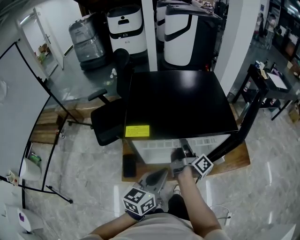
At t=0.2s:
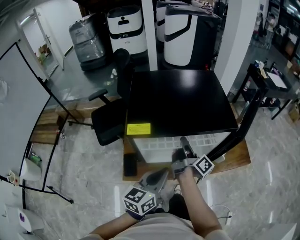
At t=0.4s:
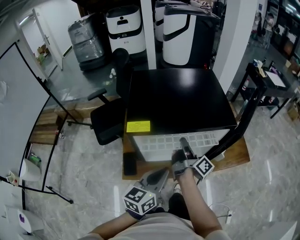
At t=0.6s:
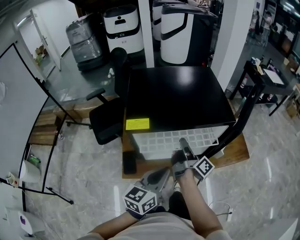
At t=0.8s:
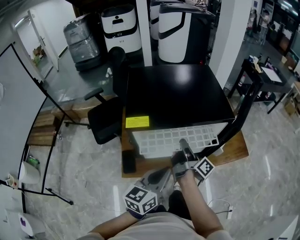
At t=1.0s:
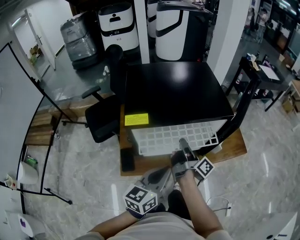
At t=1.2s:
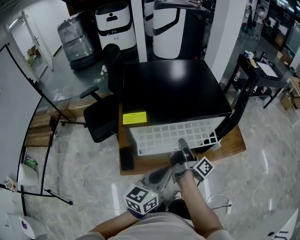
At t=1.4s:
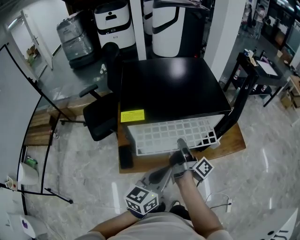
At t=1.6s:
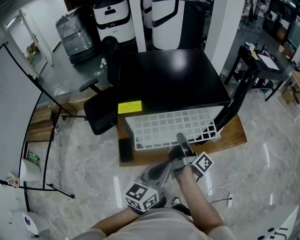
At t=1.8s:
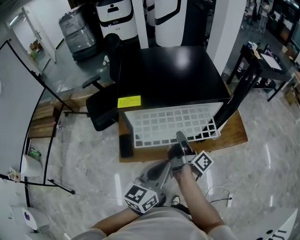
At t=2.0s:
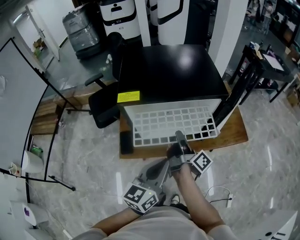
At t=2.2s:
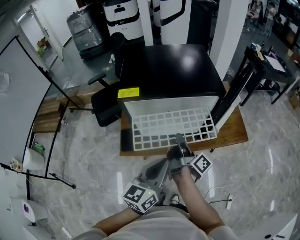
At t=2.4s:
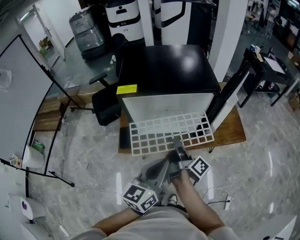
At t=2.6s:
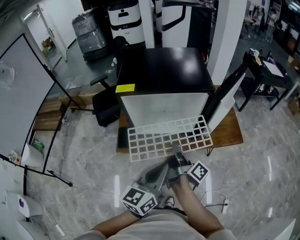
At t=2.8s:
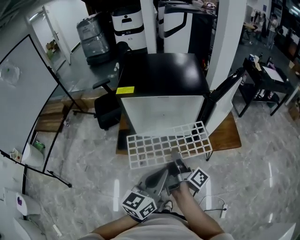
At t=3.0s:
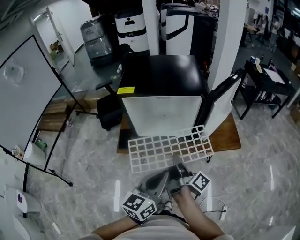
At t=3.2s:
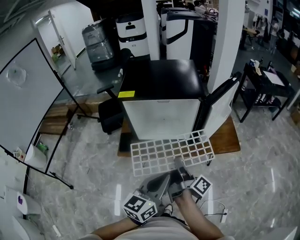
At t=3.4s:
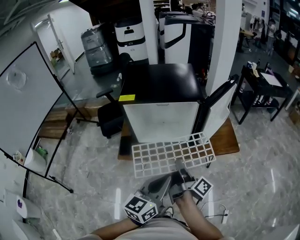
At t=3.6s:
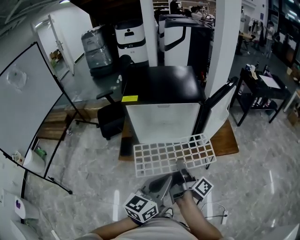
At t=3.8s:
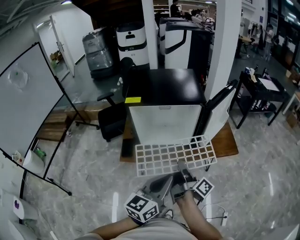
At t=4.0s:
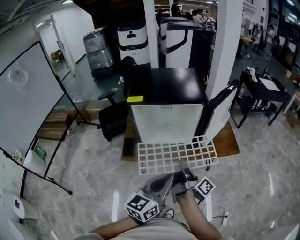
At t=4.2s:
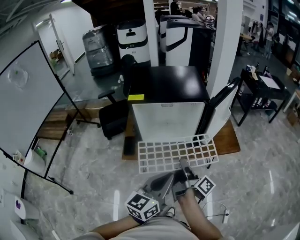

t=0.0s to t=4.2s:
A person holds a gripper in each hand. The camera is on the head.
t=0.0s to t=1.4s: The left gripper changes place by approximately 5 cm.
t=1.4s to t=2.8s: The left gripper ends up about 15 cm from where it was.
t=2.8s to t=4.2s: The left gripper shifts by some 5 cm.

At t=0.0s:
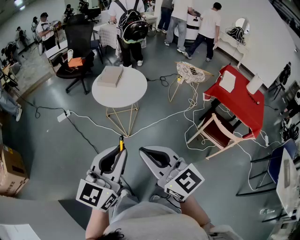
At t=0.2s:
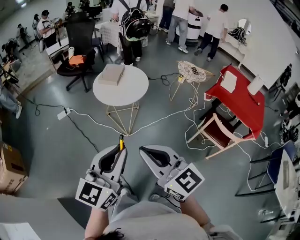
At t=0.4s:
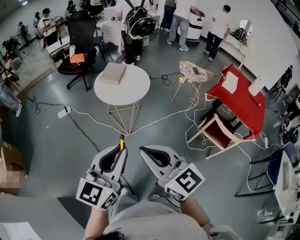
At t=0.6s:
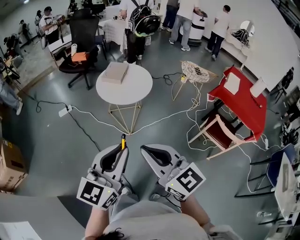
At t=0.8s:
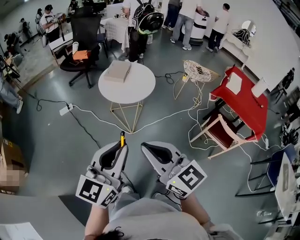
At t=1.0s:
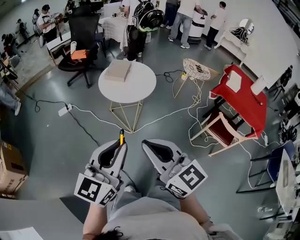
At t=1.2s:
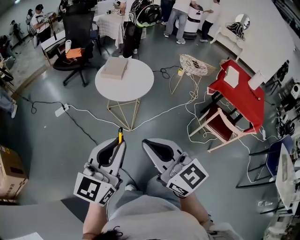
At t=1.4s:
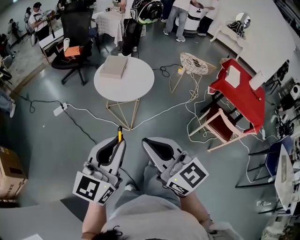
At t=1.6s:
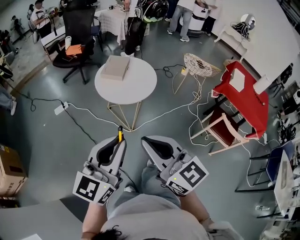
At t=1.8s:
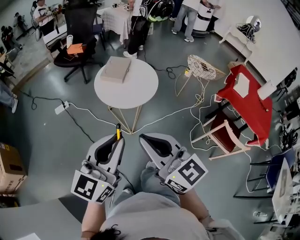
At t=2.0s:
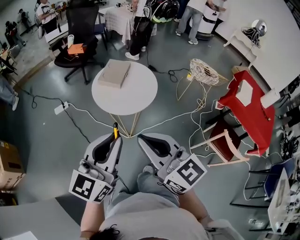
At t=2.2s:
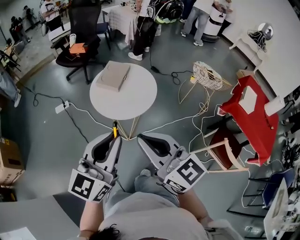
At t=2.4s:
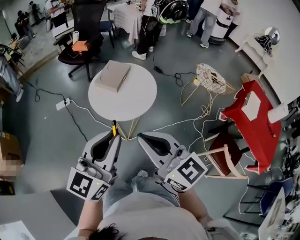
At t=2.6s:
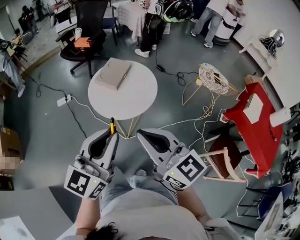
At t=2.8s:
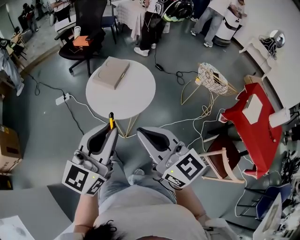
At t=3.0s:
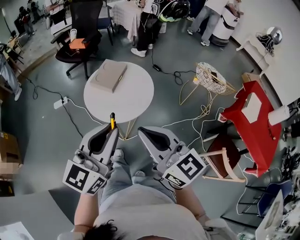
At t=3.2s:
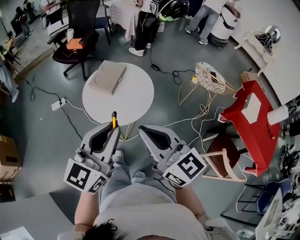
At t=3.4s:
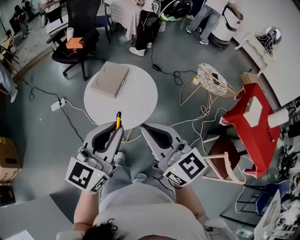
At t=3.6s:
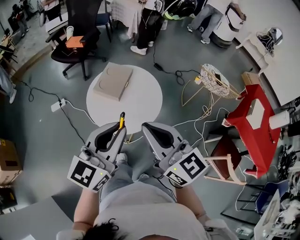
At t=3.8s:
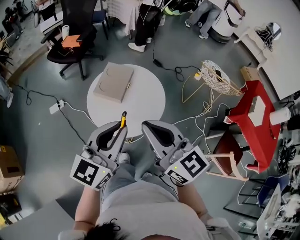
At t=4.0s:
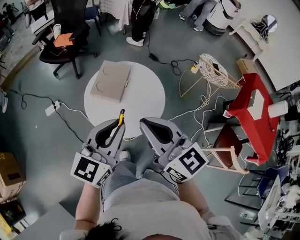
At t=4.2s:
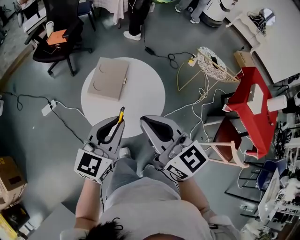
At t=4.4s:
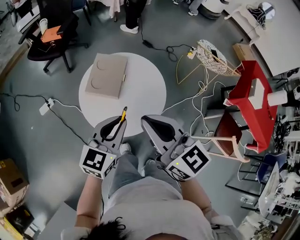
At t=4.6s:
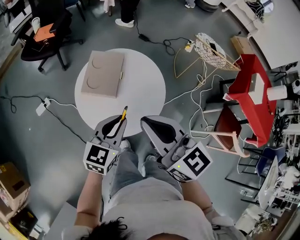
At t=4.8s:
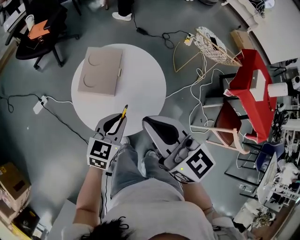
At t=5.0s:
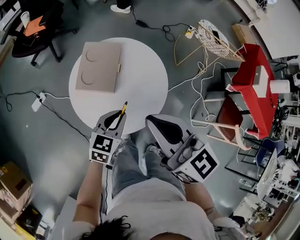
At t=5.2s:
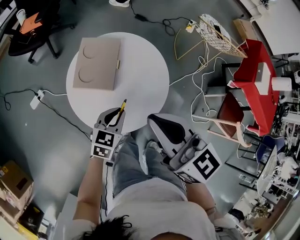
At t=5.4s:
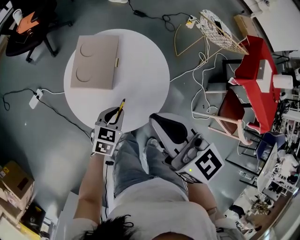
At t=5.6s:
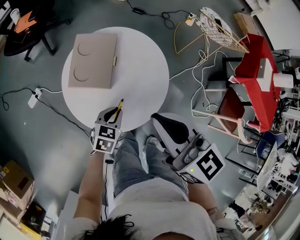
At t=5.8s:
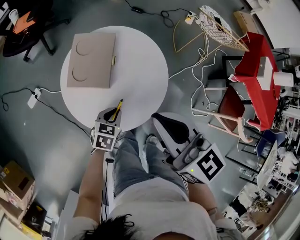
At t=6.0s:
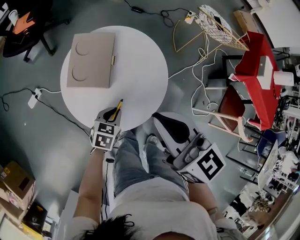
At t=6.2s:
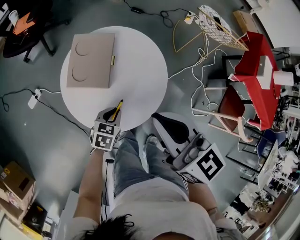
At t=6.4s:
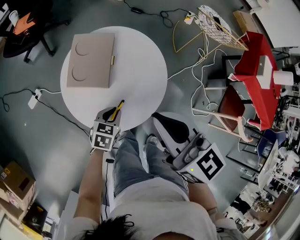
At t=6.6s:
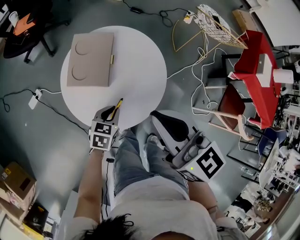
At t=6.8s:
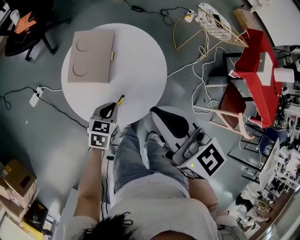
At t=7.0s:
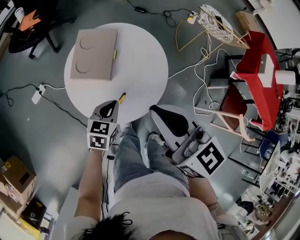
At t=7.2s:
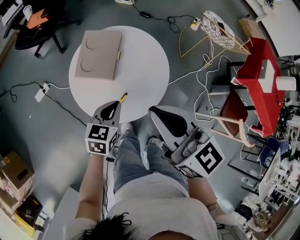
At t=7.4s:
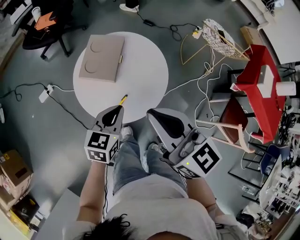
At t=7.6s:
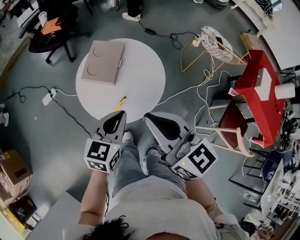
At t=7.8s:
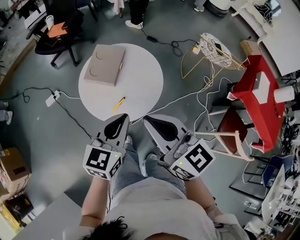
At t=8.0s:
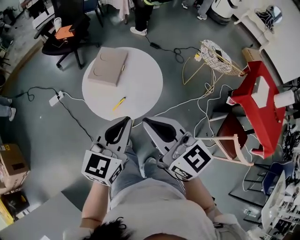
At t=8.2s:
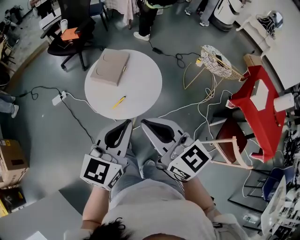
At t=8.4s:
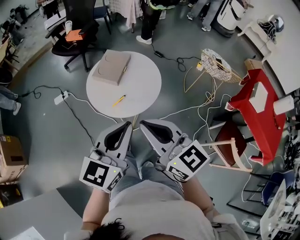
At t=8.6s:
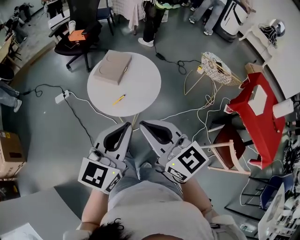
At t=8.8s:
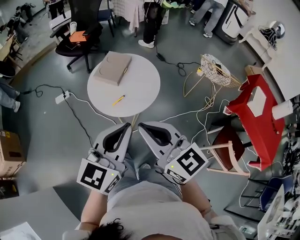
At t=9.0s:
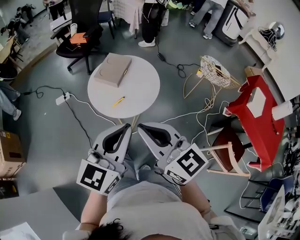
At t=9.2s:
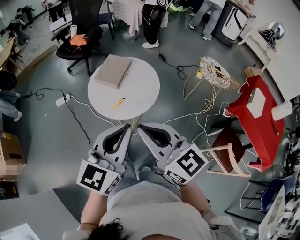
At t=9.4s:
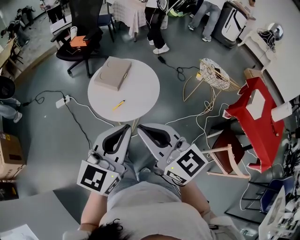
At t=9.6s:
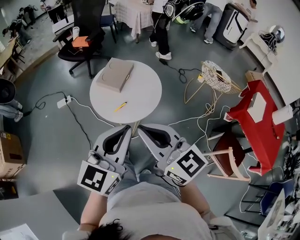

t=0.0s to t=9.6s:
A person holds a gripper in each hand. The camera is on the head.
t=0.0s to t=1.6s: The two grippers go some 15 cm forward and to the left.
t=1.6s to t=3.2s: Both grippers move forward and to the right, approximately 30 cm.
t=3.2s to t=4.8s: The left gripper shifts approximately 35 cm downward and forward, and rotates approximately 30 degrees. The right gripper shifts about 20 cm forward and to the left.
t=4.8s to t=6.4s: The left gripper travels downward by some 15 cm, and rotates about 30 degrees; the right gripper changes place by roughly 5 cm.
t=6.4s to t=8.0s: The left gripper heads upward and backward, covering some 35 cm, and tilts its fingers about 40 degrees upward. Meanwhile the right gripper travels backward and upward by approximately 15 cm.
t=8.0s to t=9.6s: The right gripper is displaced backward by roughly 10 cm; the left gripper goes approximately 10 cm backward and upward.

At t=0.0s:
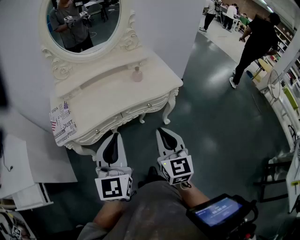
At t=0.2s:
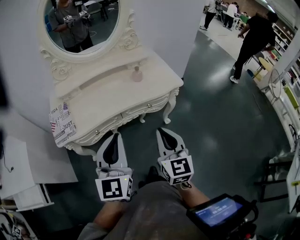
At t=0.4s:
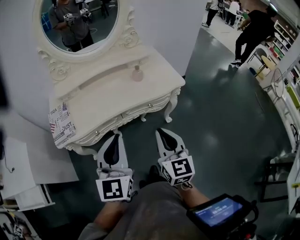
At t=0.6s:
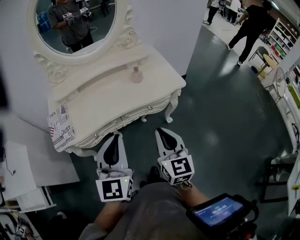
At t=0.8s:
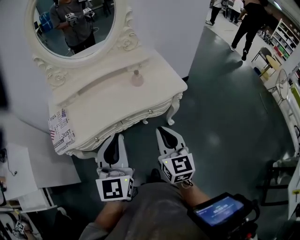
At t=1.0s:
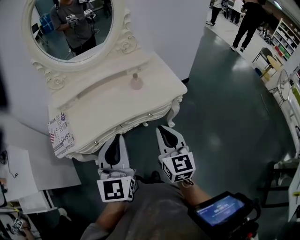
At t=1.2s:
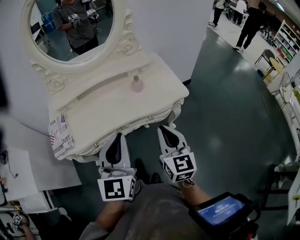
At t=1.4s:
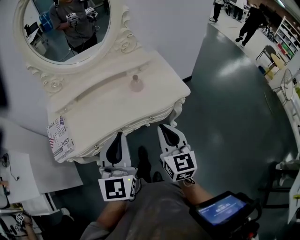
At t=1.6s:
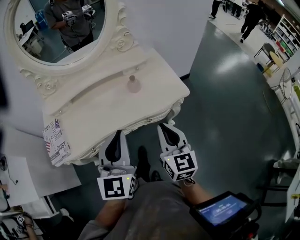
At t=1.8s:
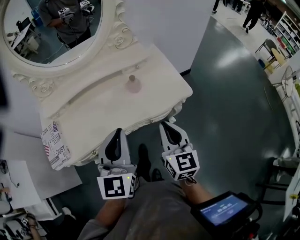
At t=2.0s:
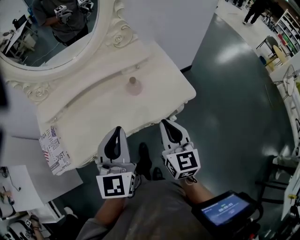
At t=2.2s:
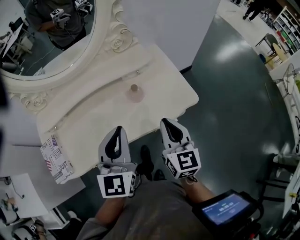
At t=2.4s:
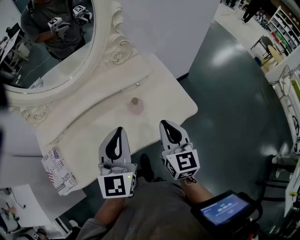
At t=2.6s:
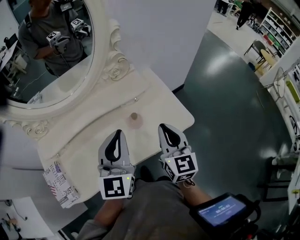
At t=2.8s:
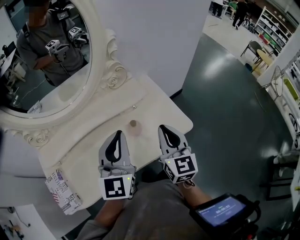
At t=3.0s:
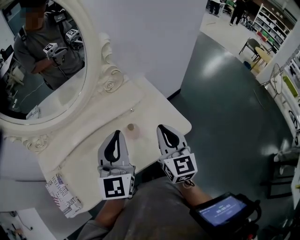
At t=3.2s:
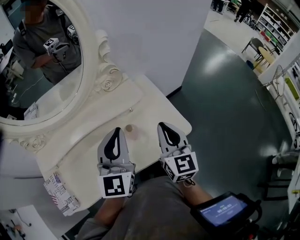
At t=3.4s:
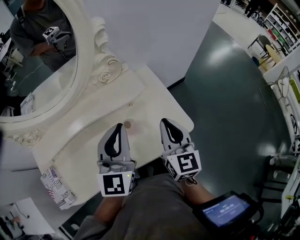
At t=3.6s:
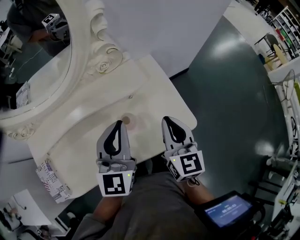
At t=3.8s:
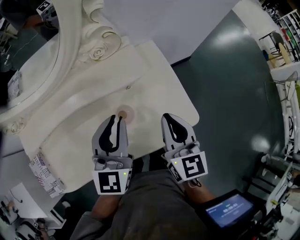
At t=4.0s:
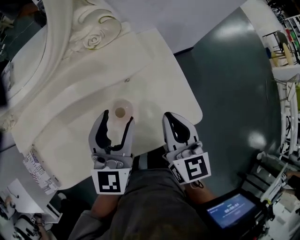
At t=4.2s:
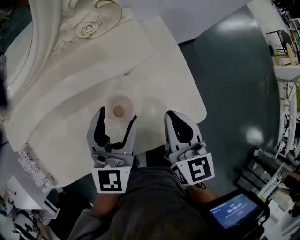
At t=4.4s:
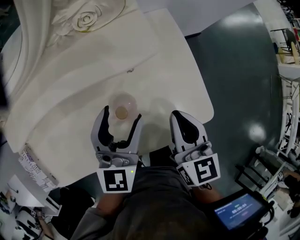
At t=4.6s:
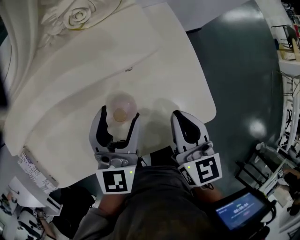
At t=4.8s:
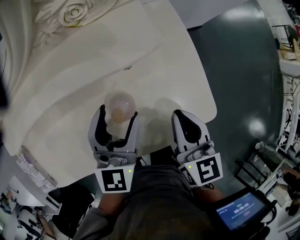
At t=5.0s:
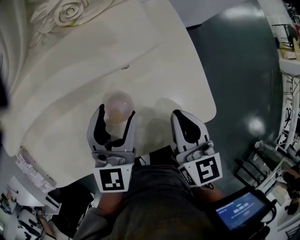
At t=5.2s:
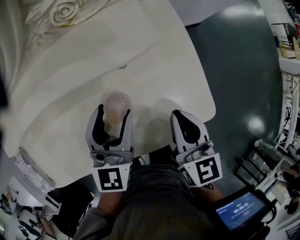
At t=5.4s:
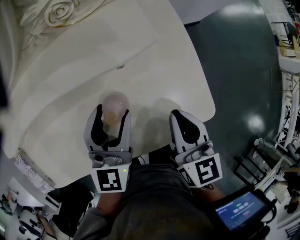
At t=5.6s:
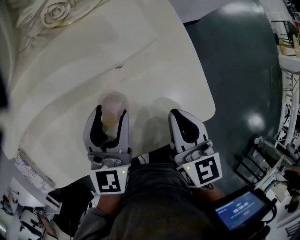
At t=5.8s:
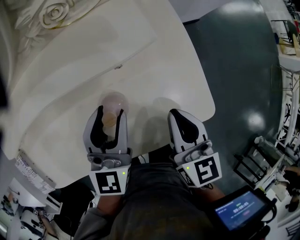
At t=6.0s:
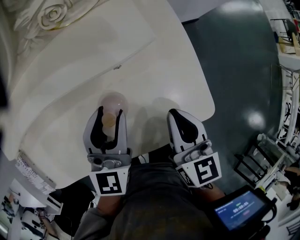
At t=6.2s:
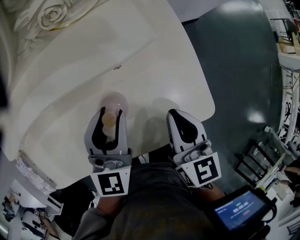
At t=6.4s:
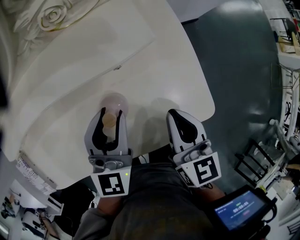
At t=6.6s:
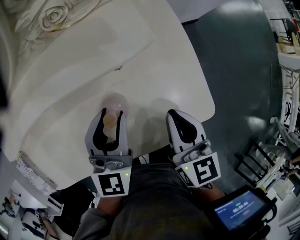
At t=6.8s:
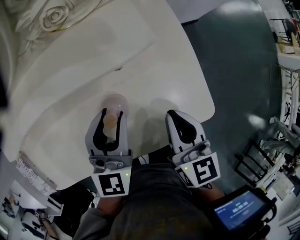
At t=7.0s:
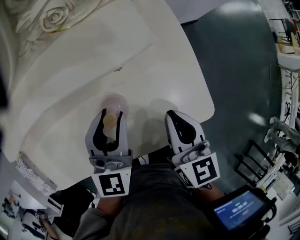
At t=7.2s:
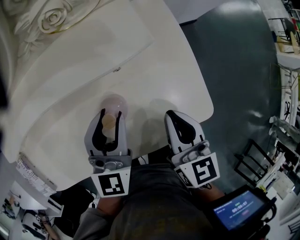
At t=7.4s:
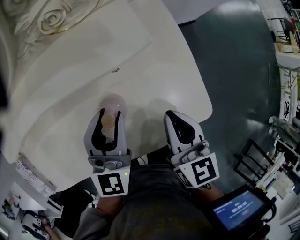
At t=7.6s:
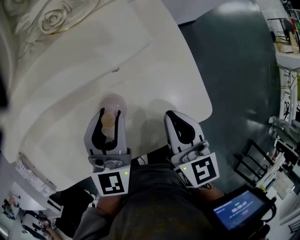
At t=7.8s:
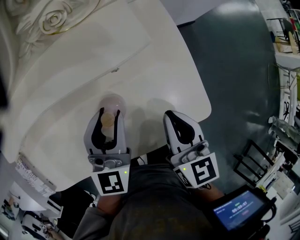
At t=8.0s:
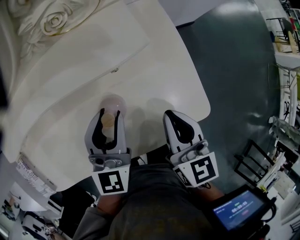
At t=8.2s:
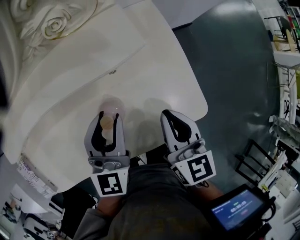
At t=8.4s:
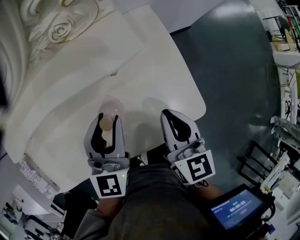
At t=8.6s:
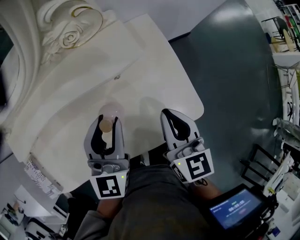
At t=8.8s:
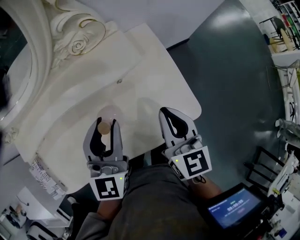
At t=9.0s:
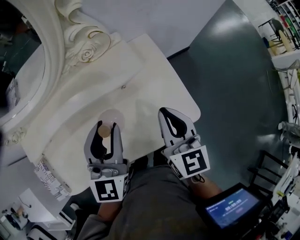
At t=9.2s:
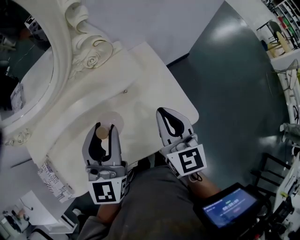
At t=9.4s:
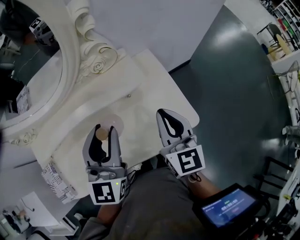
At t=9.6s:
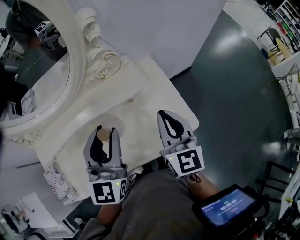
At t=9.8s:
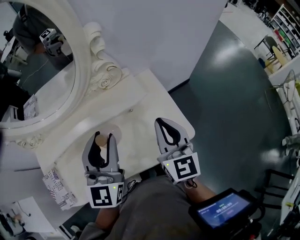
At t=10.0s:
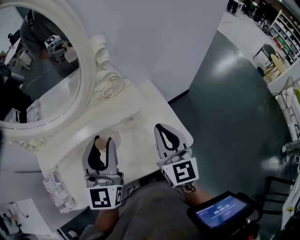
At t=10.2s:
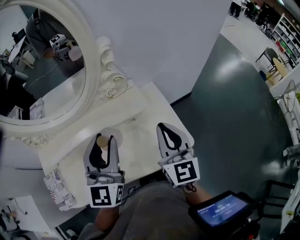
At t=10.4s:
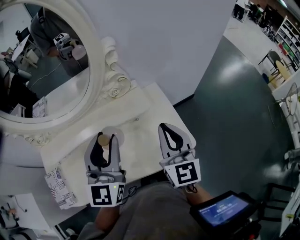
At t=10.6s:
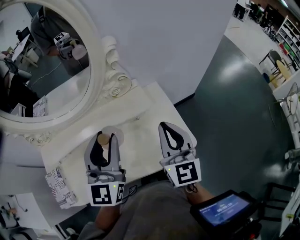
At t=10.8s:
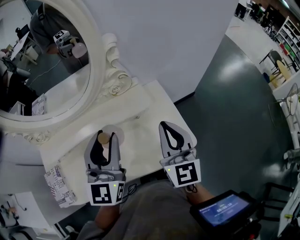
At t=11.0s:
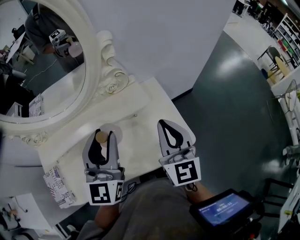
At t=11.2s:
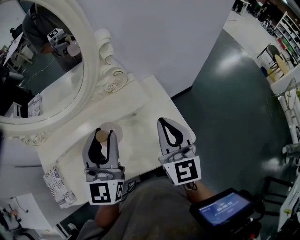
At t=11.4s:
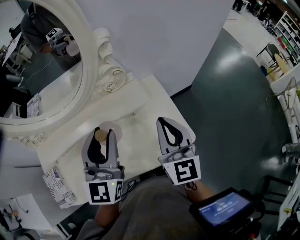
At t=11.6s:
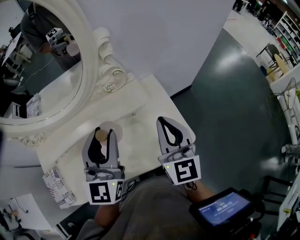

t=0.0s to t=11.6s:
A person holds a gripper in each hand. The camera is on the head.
t=0.0s to t=1.4s: The right gripper goes approximately 15 cm forward. The left gripper goes approximately 15 cm forward and to the right.
t=1.4s to t=2.8s: Both grippers travel together forward, roughly 25 cm.
t=2.8s to t=4.4s: Both grippers move downward and forward, some 20 cm. The right gripper swivels approximately 20 degrees, while the left gripper opens up.
t=4.4s to t=5.8s: The left gripper closes up.
t=5.8s to t=7.2s: Both grippers stay put.
t=7.2s to t=8.8s: Both grippers move upward, some 10 cm.
t=8.8s to t=10.2s: Both grippers travel together upward, about 15 cm.
t=10.2s to t=11.6s: The grippers move only a little.
